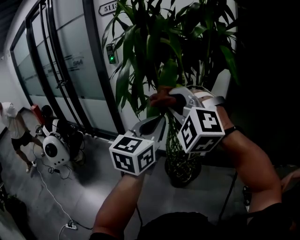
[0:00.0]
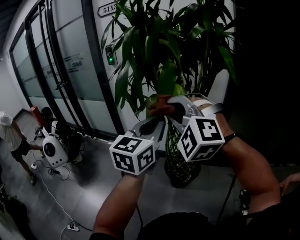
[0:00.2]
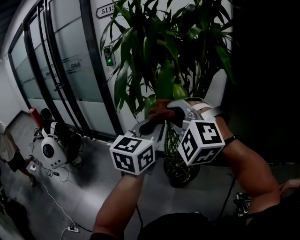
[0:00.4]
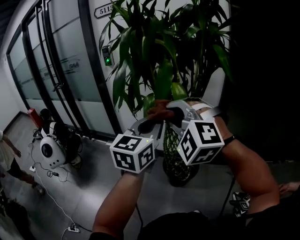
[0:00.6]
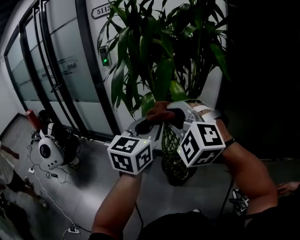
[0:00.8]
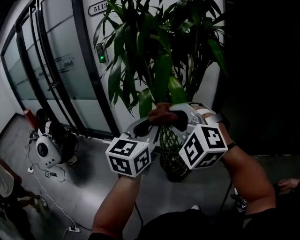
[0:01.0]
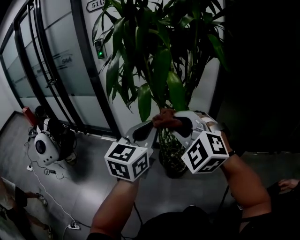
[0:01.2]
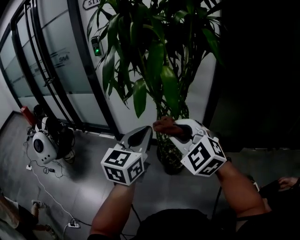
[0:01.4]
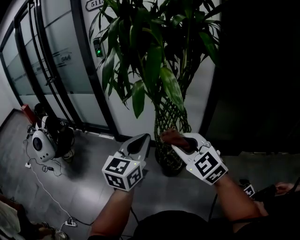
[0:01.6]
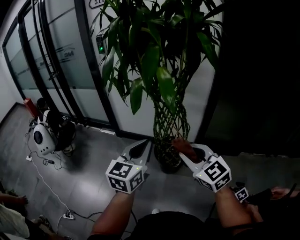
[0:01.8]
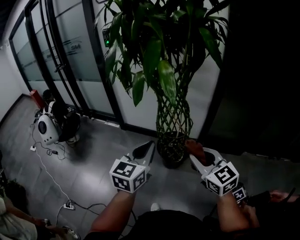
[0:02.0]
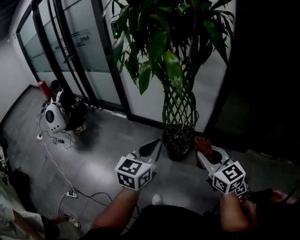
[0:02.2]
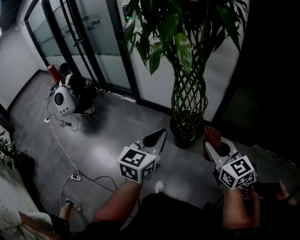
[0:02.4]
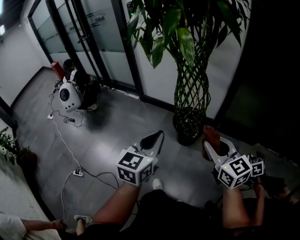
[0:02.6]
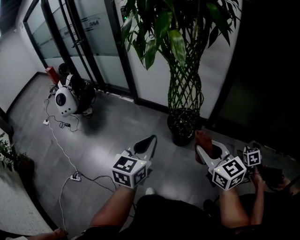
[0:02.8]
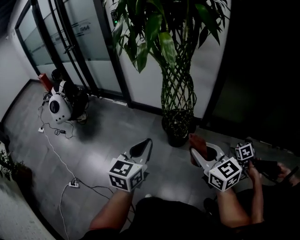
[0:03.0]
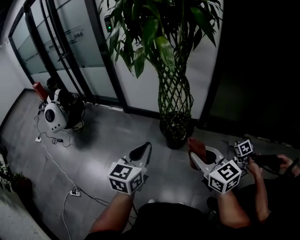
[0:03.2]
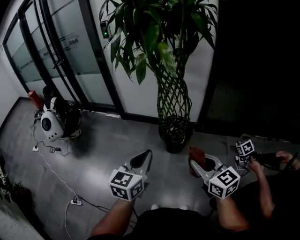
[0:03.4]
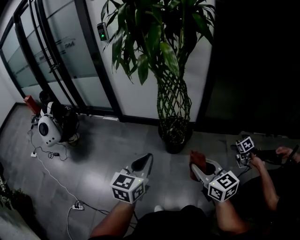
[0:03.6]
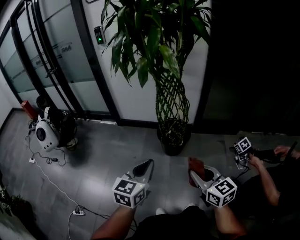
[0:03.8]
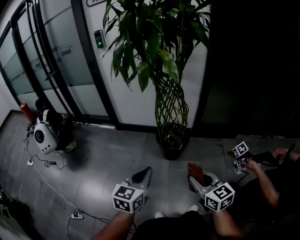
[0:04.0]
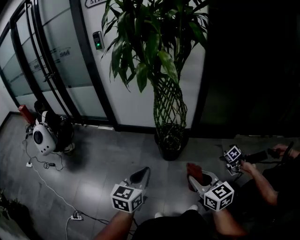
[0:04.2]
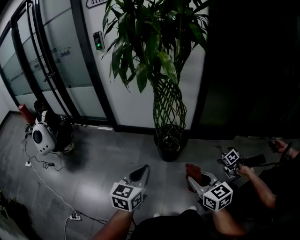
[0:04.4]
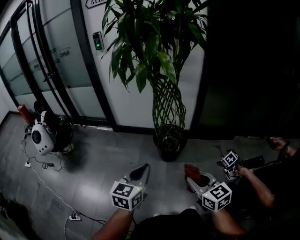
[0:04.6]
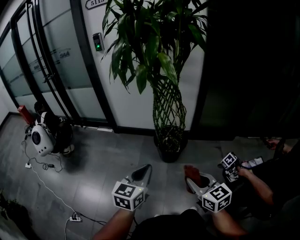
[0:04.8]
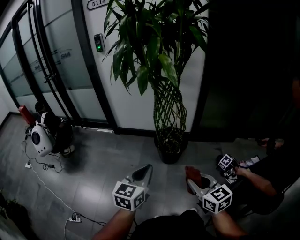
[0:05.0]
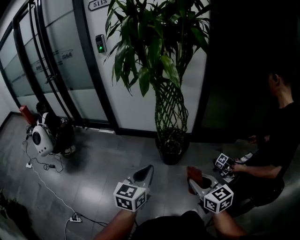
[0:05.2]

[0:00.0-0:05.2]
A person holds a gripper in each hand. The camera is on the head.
0:00.0 to 0:01.8: The right gripper shifts some 25 cm downward, backward and to the right, and rolls clockwise, seen from behind, by roughly 60 degrees, while the left gripper is displaced downward and backward by about 15 cm.
0:01.8 to 0:03.4: Both grippers move backward and downward, about 20 cm. The right gripper turns by some 20 degrees.
0:03.4 to 0:05.2: The right gripper heads downward, covering roughly 5 cm.

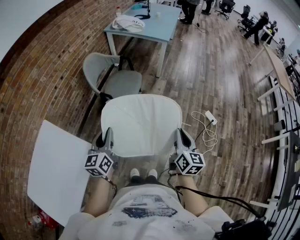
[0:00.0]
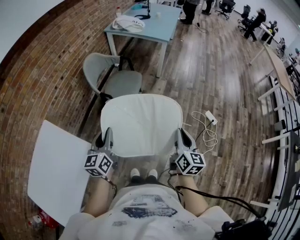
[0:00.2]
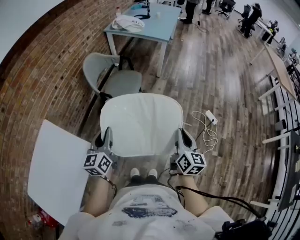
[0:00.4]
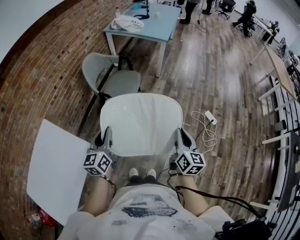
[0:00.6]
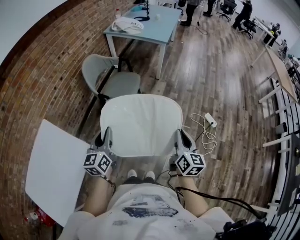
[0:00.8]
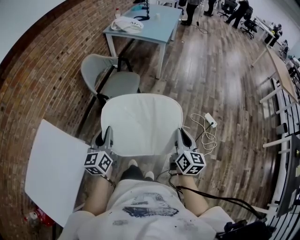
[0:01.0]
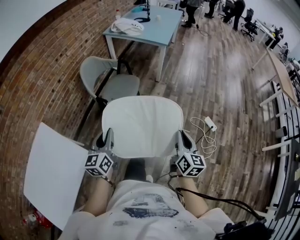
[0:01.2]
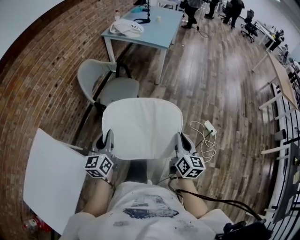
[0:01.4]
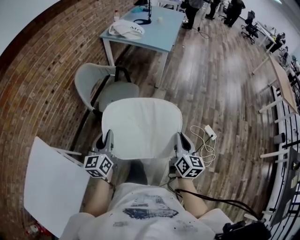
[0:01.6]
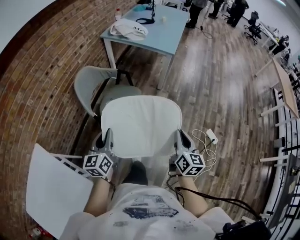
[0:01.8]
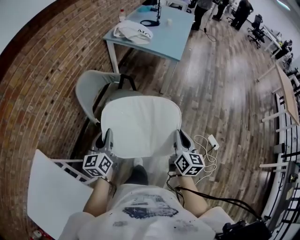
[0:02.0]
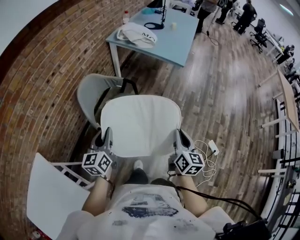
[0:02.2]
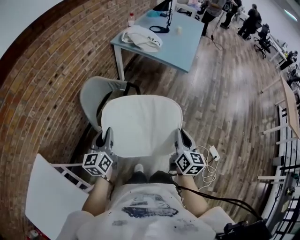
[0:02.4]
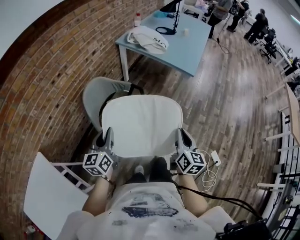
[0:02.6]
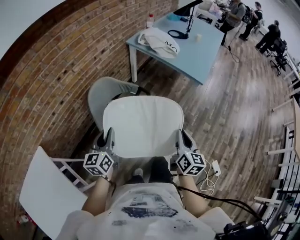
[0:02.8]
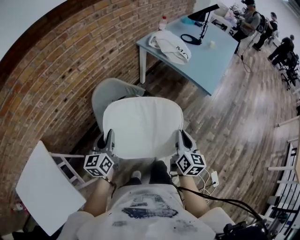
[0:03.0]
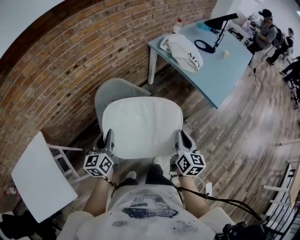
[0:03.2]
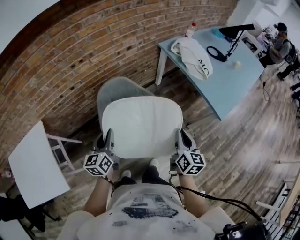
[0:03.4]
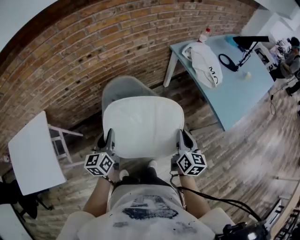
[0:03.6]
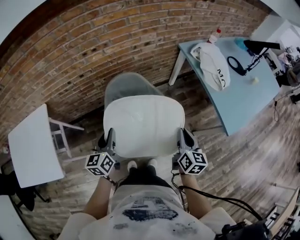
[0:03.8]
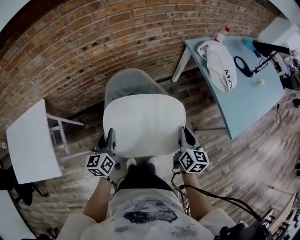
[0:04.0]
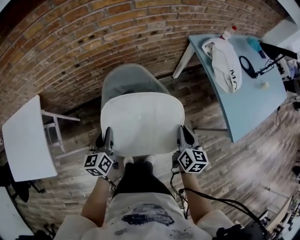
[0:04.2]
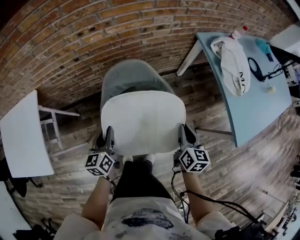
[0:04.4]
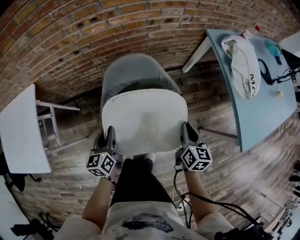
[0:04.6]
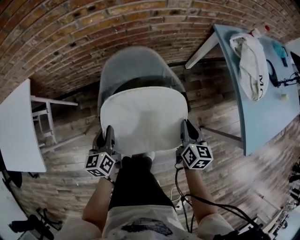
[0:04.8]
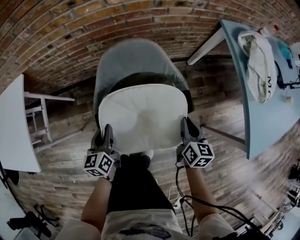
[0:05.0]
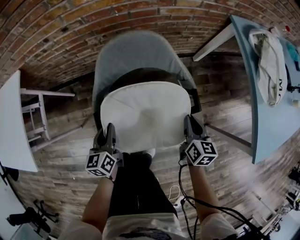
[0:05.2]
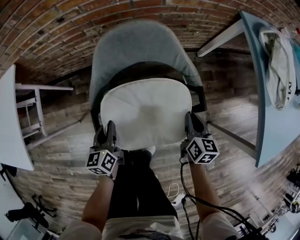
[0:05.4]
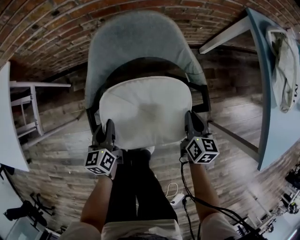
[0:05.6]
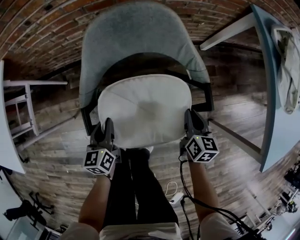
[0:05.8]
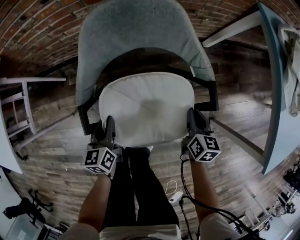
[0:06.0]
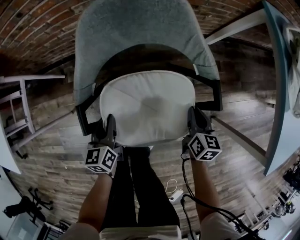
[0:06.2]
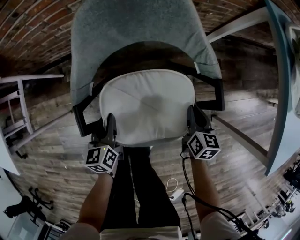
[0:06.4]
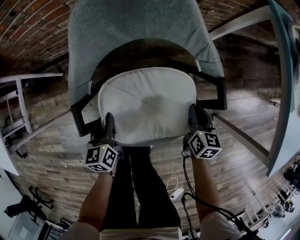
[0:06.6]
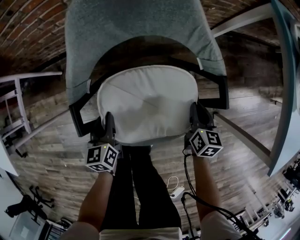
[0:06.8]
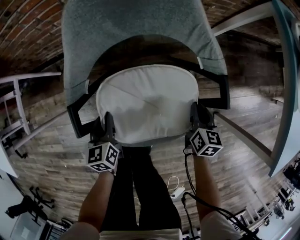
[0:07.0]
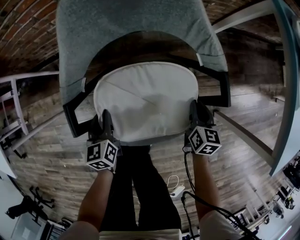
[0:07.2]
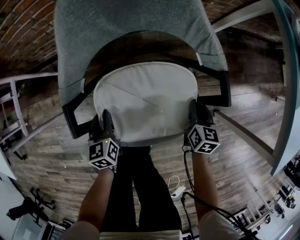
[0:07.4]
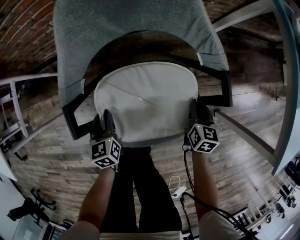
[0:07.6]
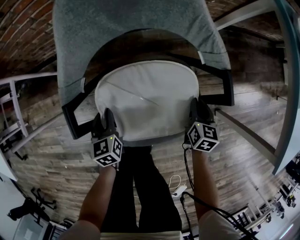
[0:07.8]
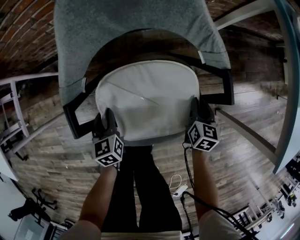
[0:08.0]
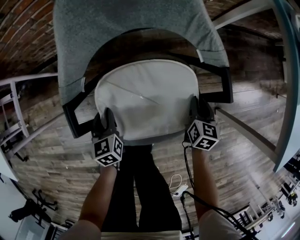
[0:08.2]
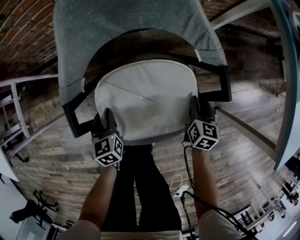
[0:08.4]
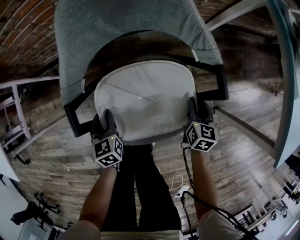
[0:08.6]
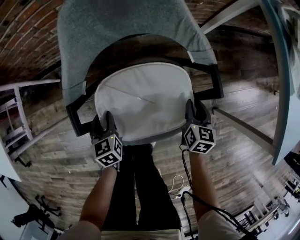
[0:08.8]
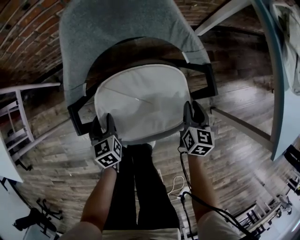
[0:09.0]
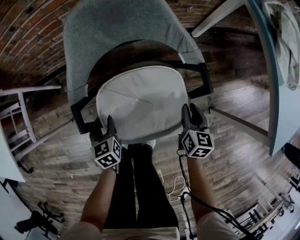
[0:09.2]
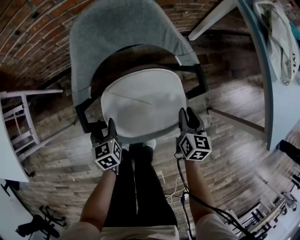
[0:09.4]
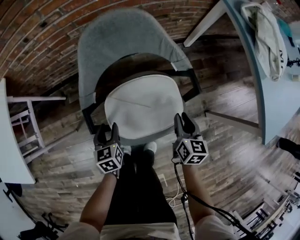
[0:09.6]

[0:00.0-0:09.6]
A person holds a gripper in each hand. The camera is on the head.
0:00.0 to 0:01.6: The two grippers go some 15 cm forward.
0:01.6 to 0:03.2: The left gripper moves approximately 35 cm, and swivels approximately 30 degrees. Meanwhile the right gripper changes place by approximately 50 cm, and turns by approximately 30 degrees.
0:03.2 to 0:04.8: Both grippers travel together downward, approximately 25 cm. The right gripper swivels about 30 degrees. Meanwhile the left gripper swivels approximately 30 degrees.
0:04.8 to 0:06.4: Both grippers move downward, some 25 cm.
0:06.4 to 0:08.0: The grippers both shift downward by roughly 5 cm.
0:08.0 to 0:09.6: Both grippers move upward, about 15 cm. The left gripper opens.

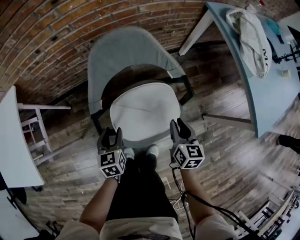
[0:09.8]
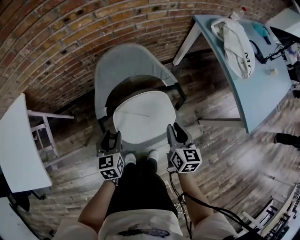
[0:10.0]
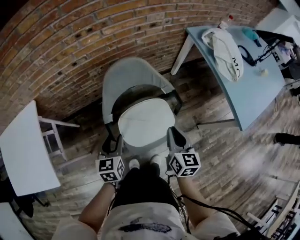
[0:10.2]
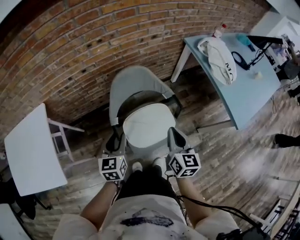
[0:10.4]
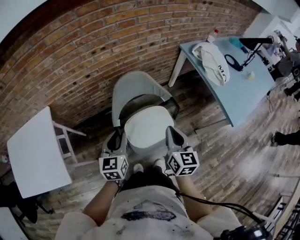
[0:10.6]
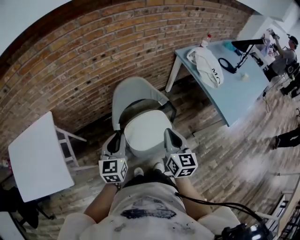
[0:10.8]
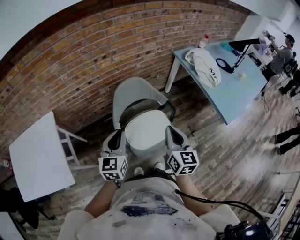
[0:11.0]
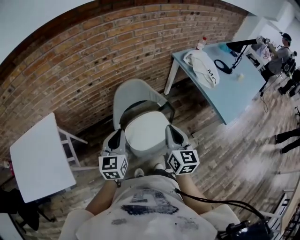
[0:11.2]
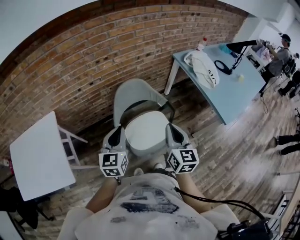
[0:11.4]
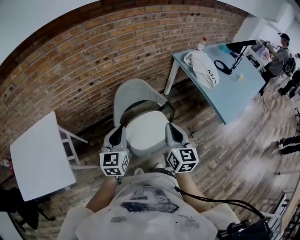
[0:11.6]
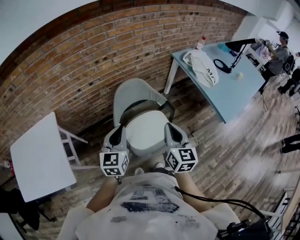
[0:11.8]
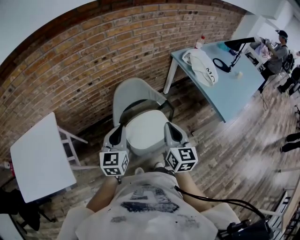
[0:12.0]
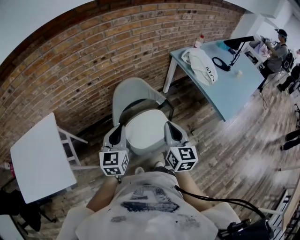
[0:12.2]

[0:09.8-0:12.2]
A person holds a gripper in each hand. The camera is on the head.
0:09.8 to 0:11.0: Both grippers travel together upward, some 40 cm. The right gripper turns by some 20 degrees, and closes. The left gripper rotates roughly 30 degrees, and closes its fingers.
0:11.0 to 0:12.2: The grippers move only a little.

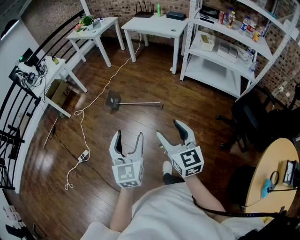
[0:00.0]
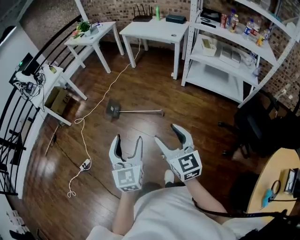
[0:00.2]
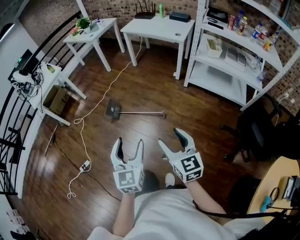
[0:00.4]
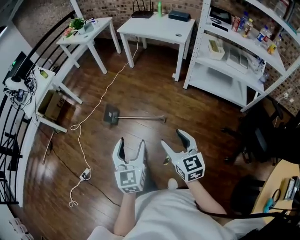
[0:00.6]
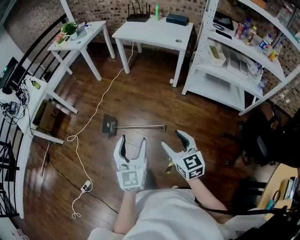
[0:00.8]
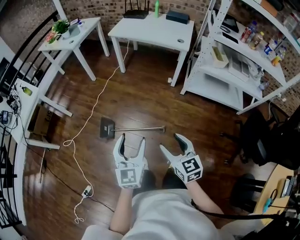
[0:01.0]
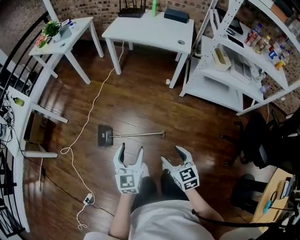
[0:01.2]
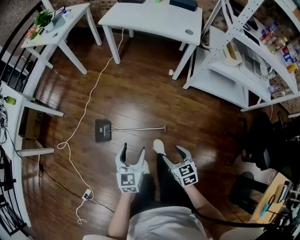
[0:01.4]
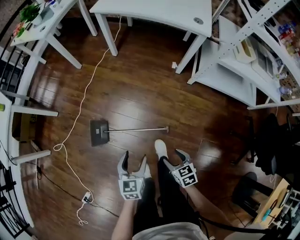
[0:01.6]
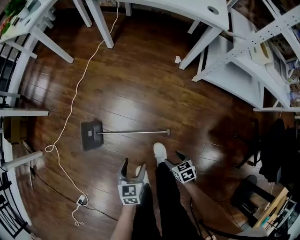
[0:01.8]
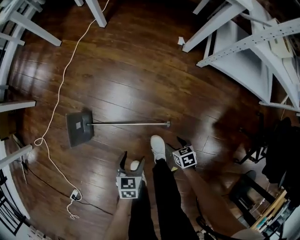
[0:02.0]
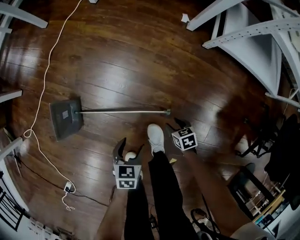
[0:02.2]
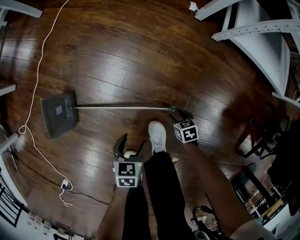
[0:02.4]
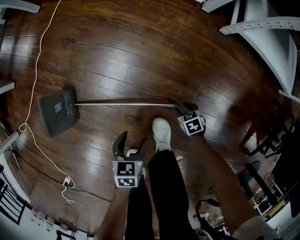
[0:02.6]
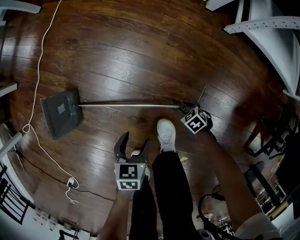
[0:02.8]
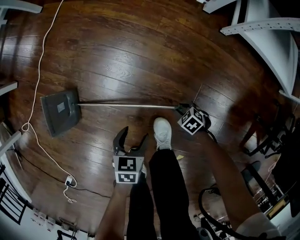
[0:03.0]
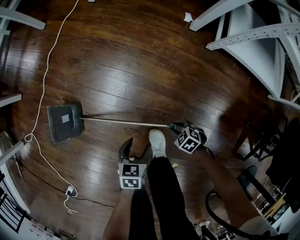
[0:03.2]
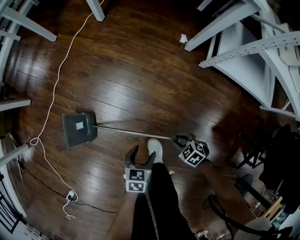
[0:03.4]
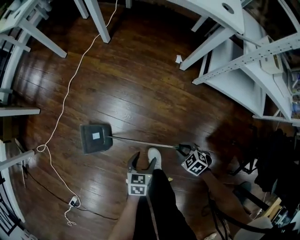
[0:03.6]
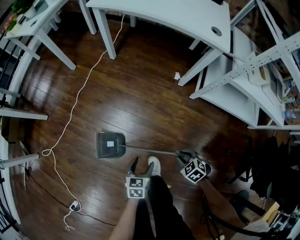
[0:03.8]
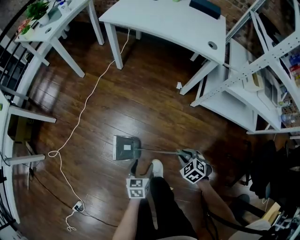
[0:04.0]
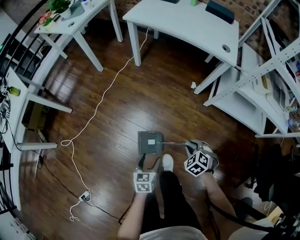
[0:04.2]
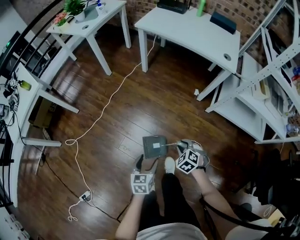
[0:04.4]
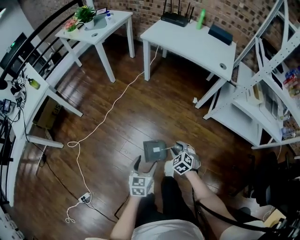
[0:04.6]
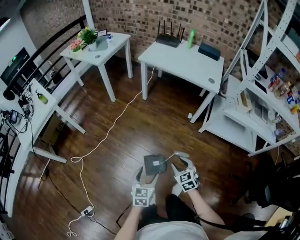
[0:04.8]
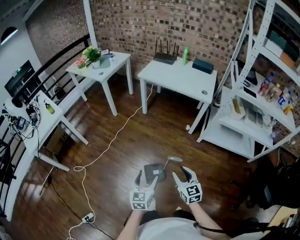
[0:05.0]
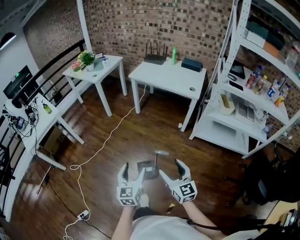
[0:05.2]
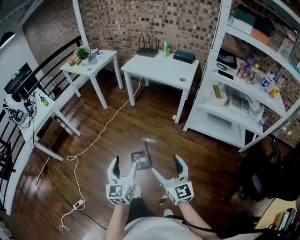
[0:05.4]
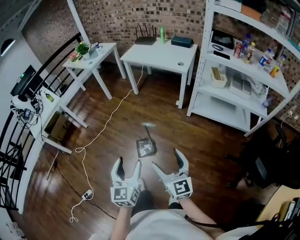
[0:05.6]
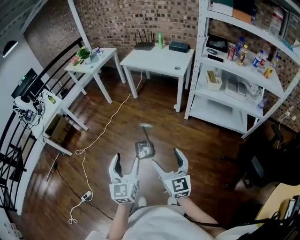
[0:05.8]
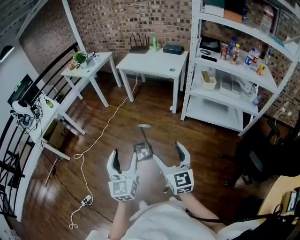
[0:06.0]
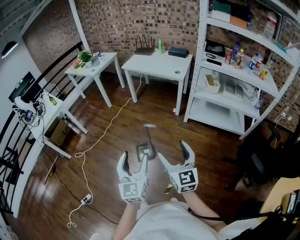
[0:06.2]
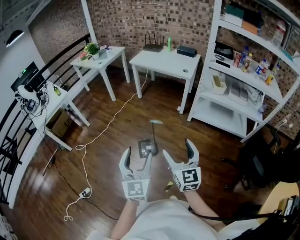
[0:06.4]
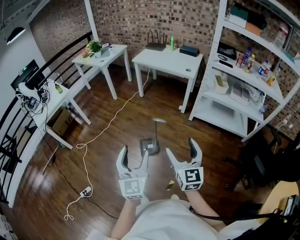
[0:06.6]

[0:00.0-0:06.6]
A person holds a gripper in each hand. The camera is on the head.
0:00.0 to 0:01.6: Both grippers are carried forward, some 50 cm. The grippers both shift downward by roughly 40 cm. The right gripper tips its fingers downward by roughly 40 degrees, while the left gripper changes its angle by about 30 degrees.
0:01.6 to 0:03.2: Both grippers move downward, some 40 cm. The right gripper changes its angle by about 40 degrees, and closes up. Meanwhile the left gripper rotates some 30 degrees.
0:03.2 to 0:05.0: The two grippers go some 60 cm upward. The left gripper tilts its fingers about 40 degrees upward, while the right gripper tips its fingers upward by approximately 50 degrees.
0:05.0 to 0:06.6: Both grippers travel together backward and upward, roughly 30 cm. The left gripper swivels about 30 degrees; the right gripper opens up.
